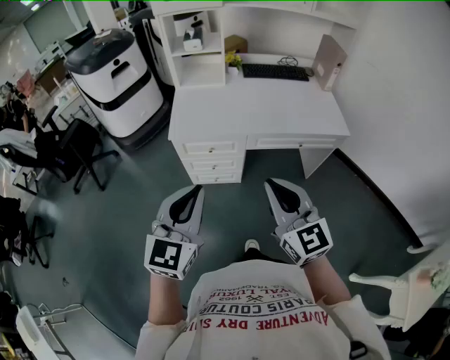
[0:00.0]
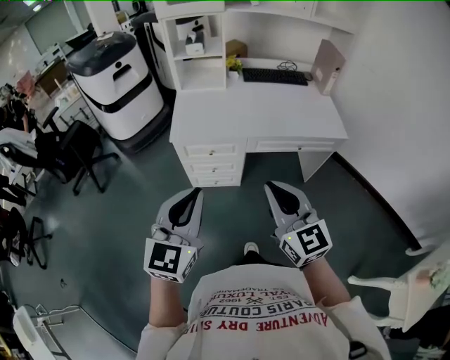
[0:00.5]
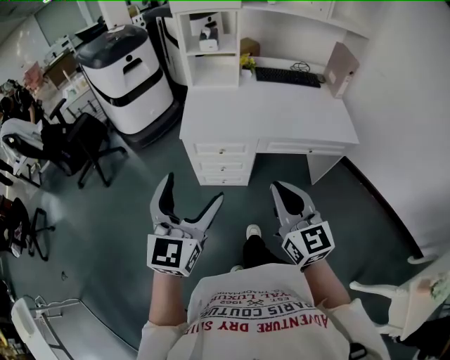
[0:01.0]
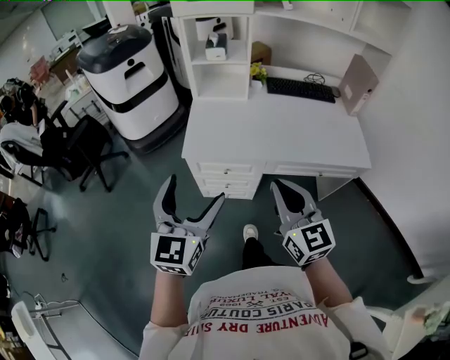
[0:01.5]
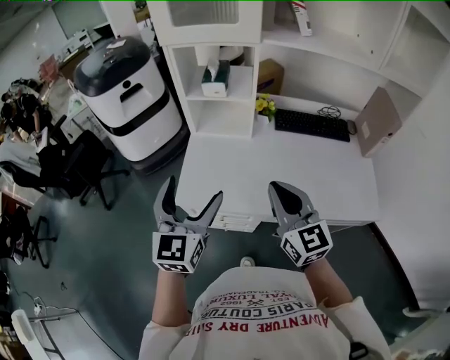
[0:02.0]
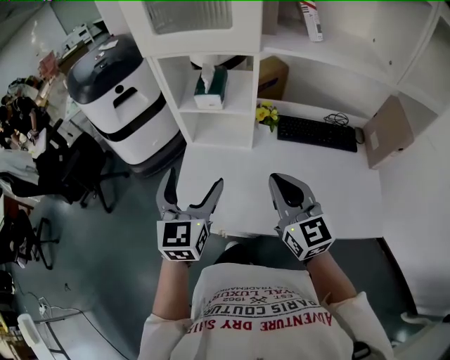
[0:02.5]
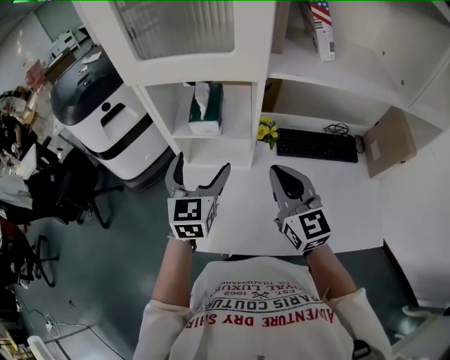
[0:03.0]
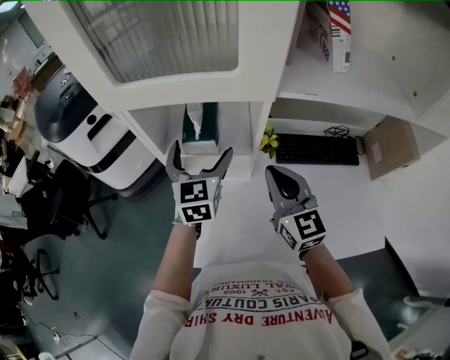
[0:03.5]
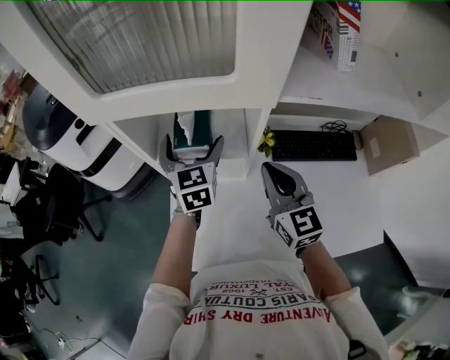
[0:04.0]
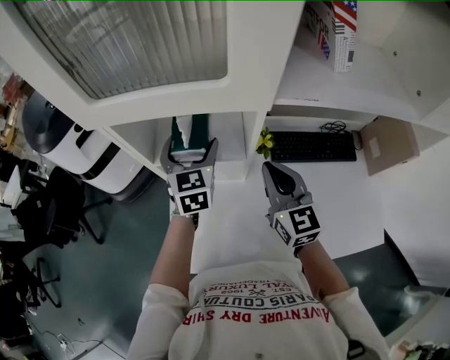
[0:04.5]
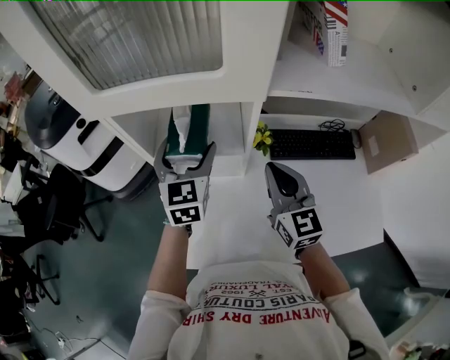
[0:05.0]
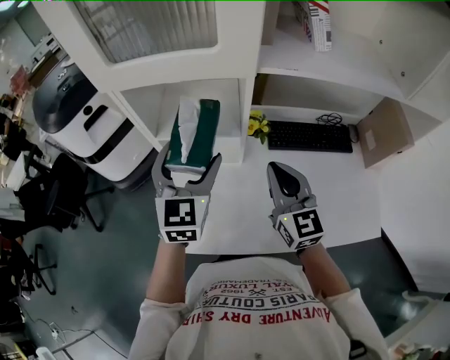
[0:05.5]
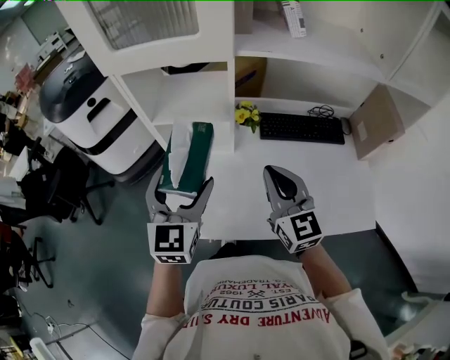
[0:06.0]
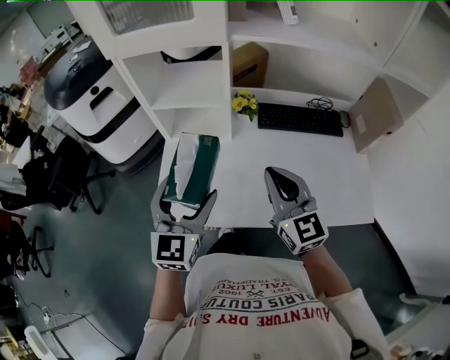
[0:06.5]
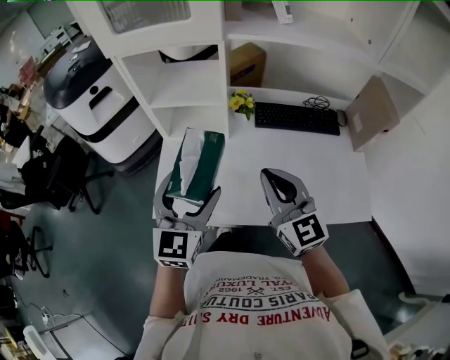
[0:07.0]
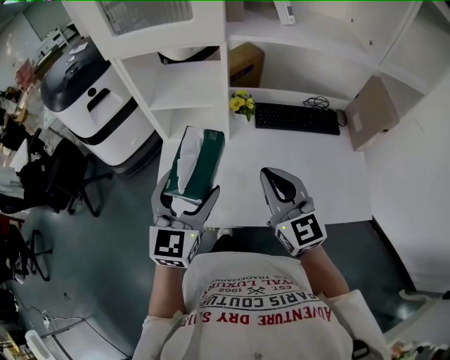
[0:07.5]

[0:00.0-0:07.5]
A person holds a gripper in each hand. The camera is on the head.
0:00.0 to 0:02.0: The two grippers go roughly 35 cm forward. The left gripper opens its fingers.
0:02.0 to 0:04.0: Both grippers move forward, approximately 40 cm.
0:04.0 to 0:05.5: The right gripper shifts approximately 10 cm backward. Meanwhile the left gripper goes some 15 cm backward and upward.
0:05.5 to 0:07.5: Both grippers move backward, about 15 cm.

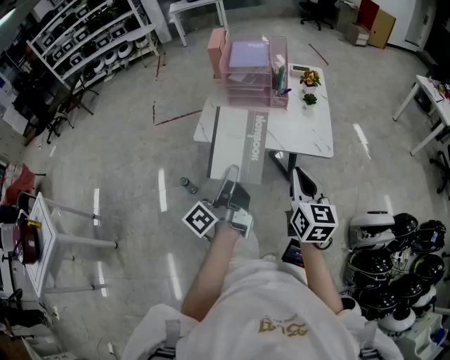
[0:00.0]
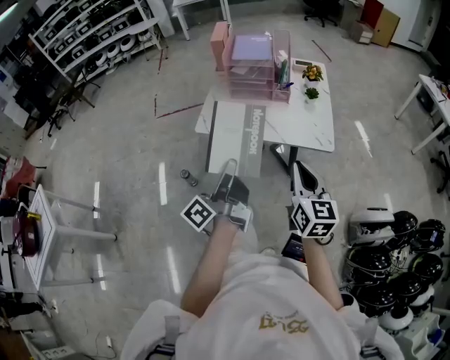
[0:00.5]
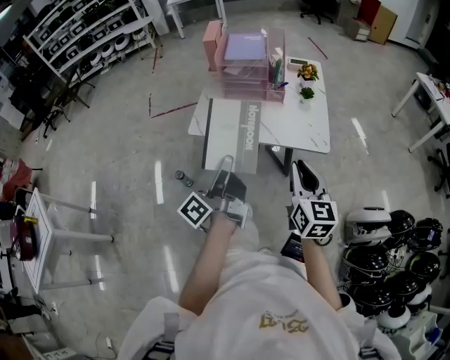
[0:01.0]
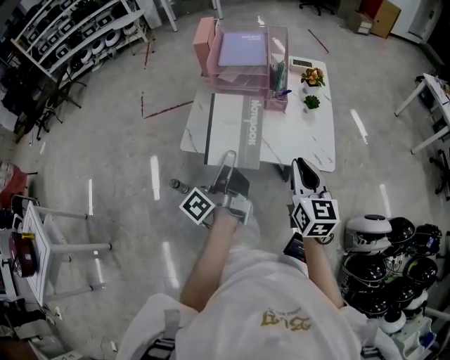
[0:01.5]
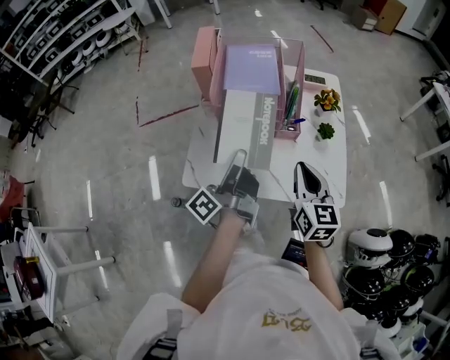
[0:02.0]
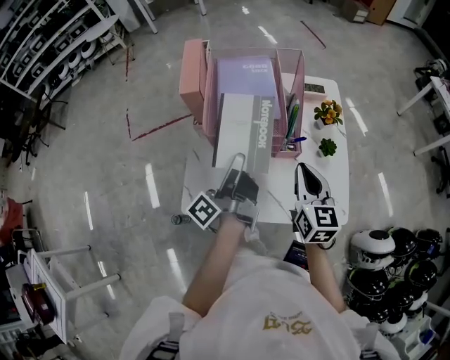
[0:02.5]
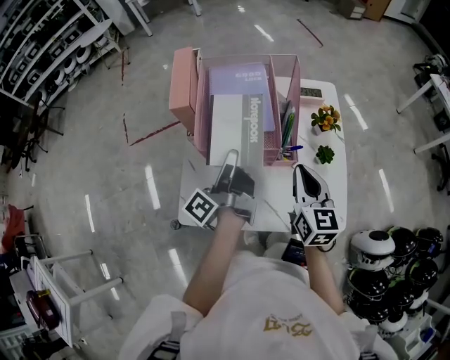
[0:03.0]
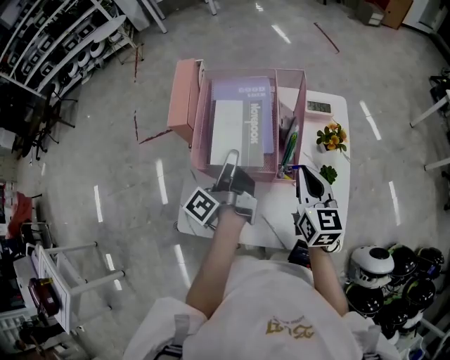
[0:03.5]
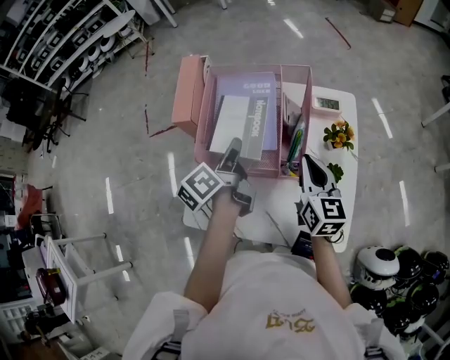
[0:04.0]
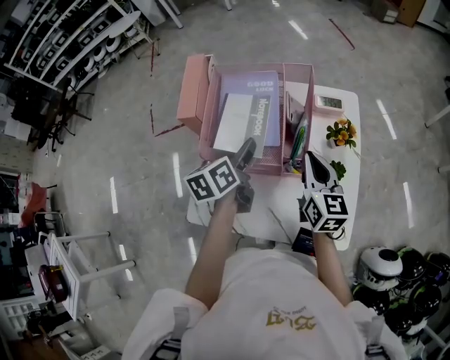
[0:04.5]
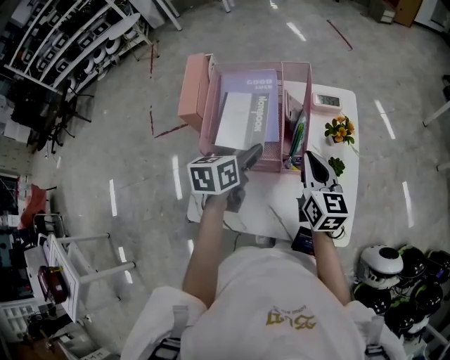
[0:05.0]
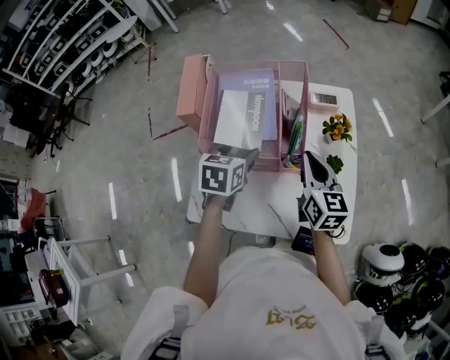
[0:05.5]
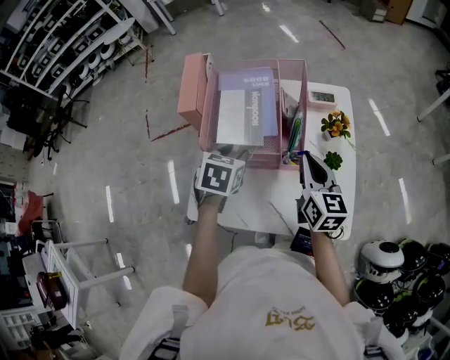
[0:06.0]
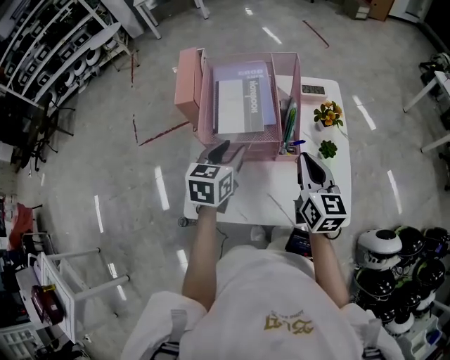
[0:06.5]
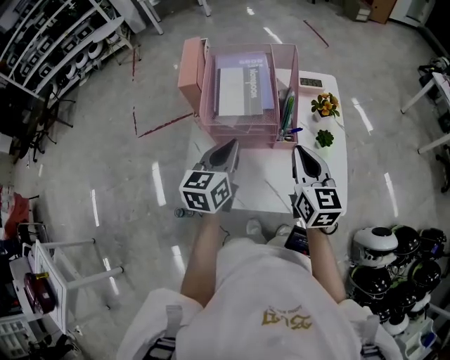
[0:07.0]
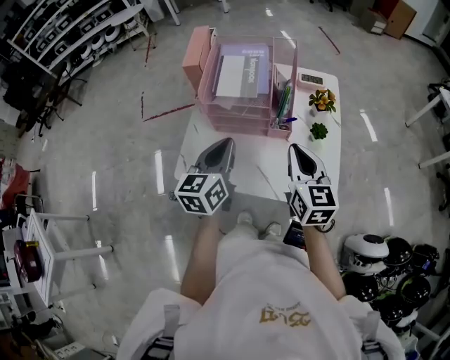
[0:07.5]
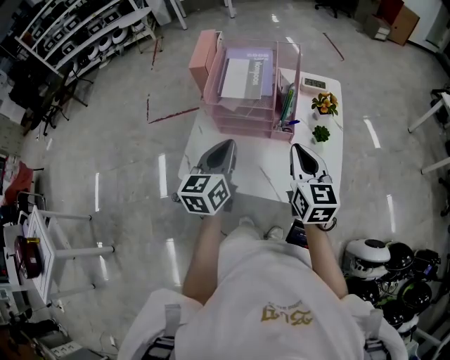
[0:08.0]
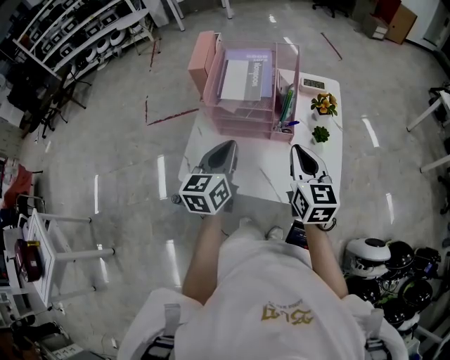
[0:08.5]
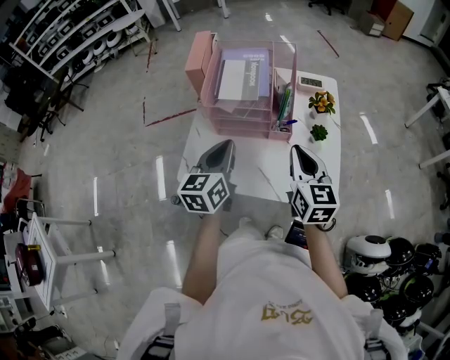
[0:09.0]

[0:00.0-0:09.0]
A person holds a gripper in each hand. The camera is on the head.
0:00.0 to 0:02.0: Both grippers move forward, about 35 cm.
0:02.0 to 0:04.5: Both grippers move forward, approximately 20 cm. The left gripper tilts its fingers roughly 40 degrees downward, and opens.
0:04.5 to 0:07.0: The two grippers go about 15 cm backward. The left gripper rotates roughly 30 degrees, and closes up.
0:07.0 to 0:09.0: Both grippers travel together backward, roughly 5 cm.

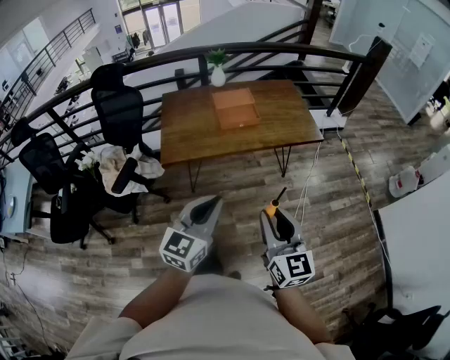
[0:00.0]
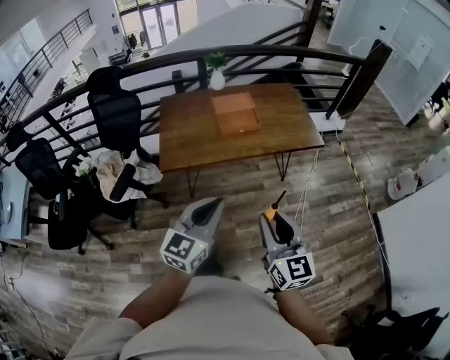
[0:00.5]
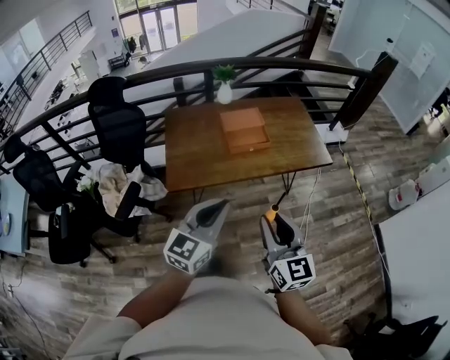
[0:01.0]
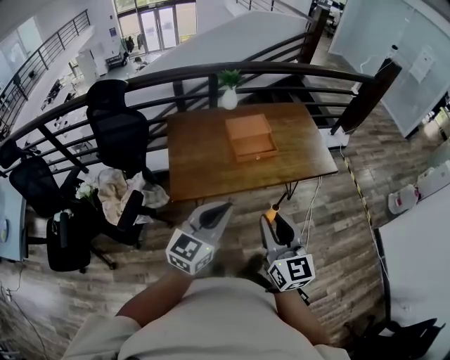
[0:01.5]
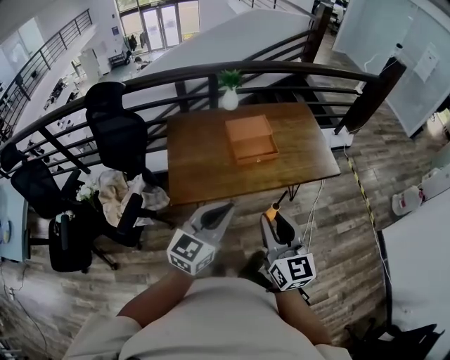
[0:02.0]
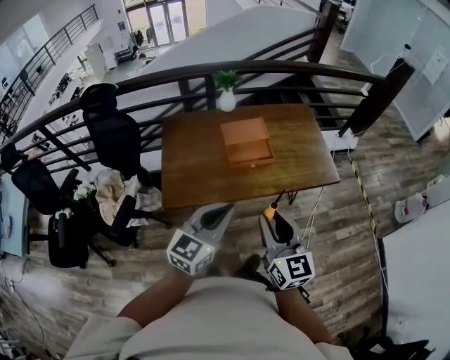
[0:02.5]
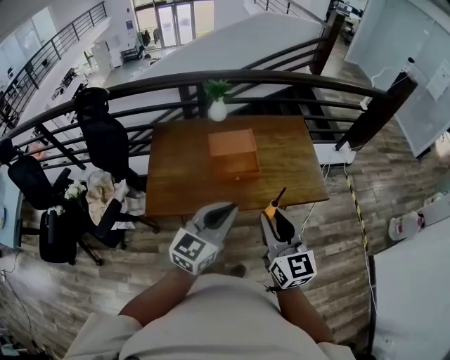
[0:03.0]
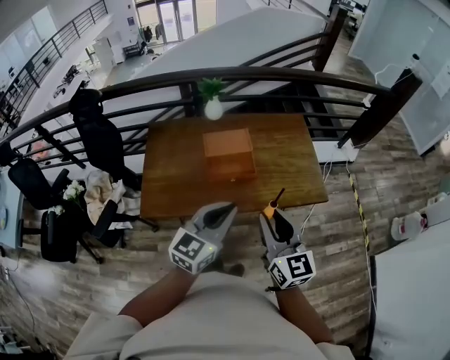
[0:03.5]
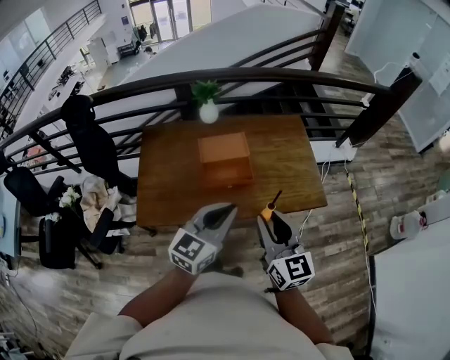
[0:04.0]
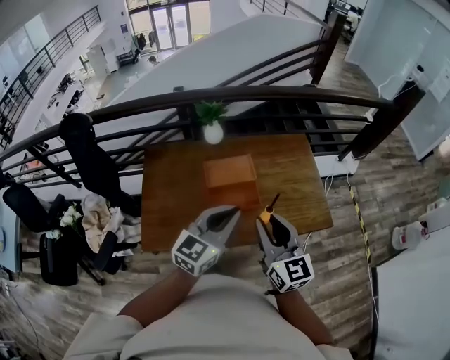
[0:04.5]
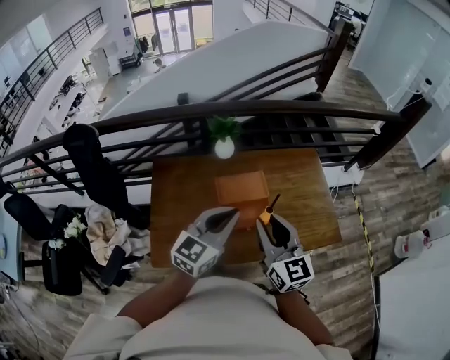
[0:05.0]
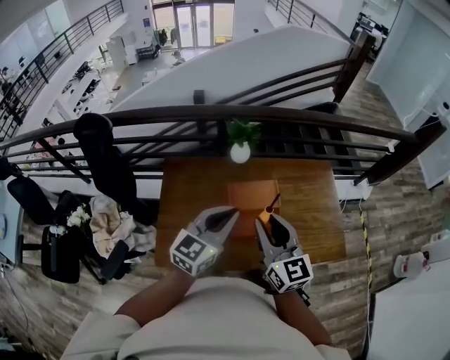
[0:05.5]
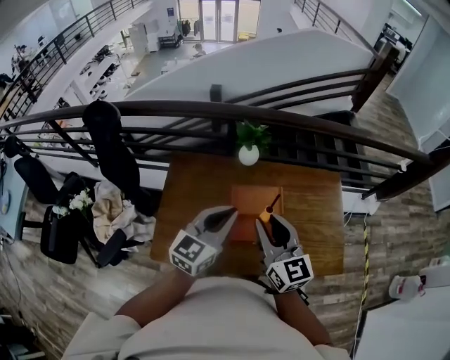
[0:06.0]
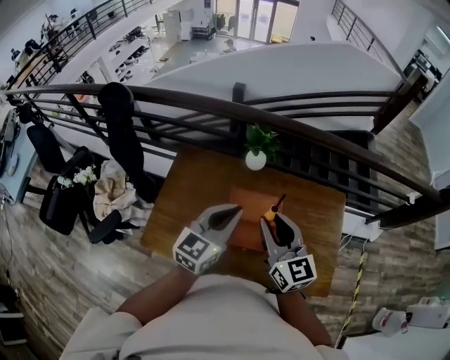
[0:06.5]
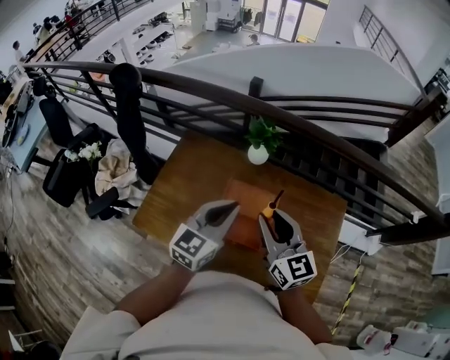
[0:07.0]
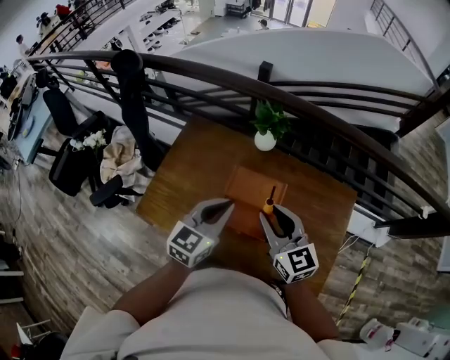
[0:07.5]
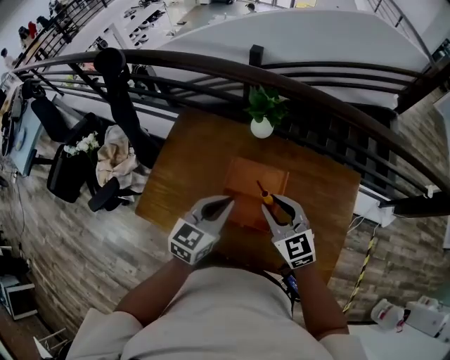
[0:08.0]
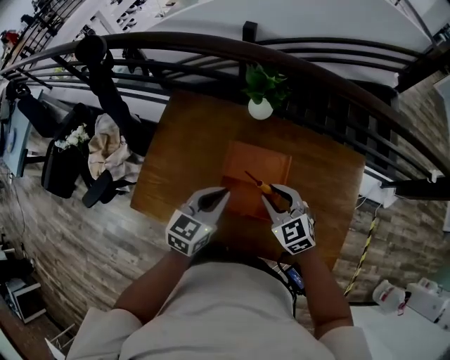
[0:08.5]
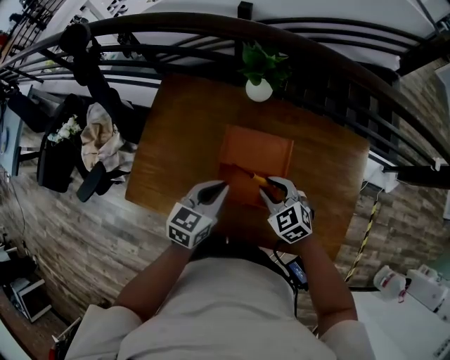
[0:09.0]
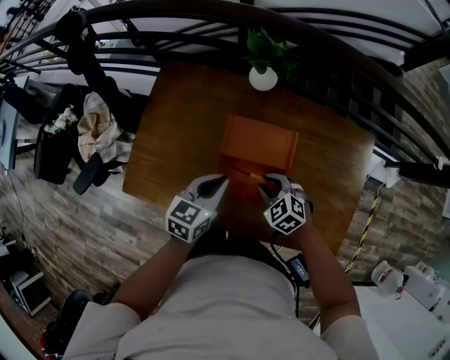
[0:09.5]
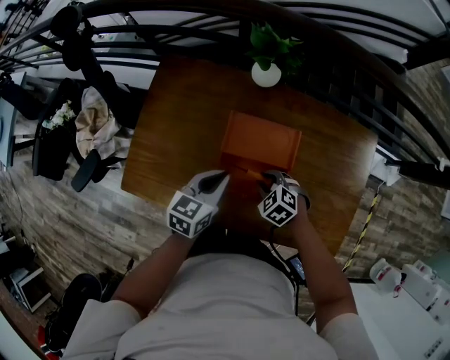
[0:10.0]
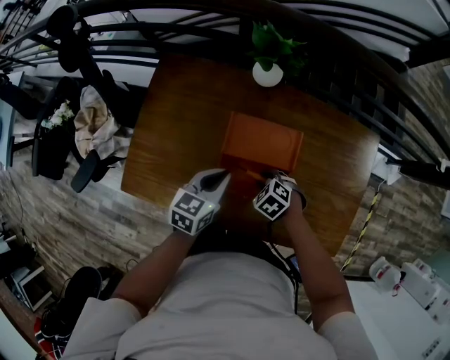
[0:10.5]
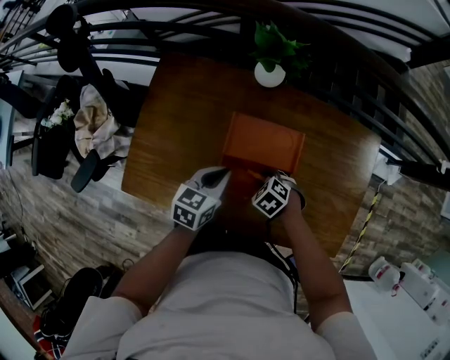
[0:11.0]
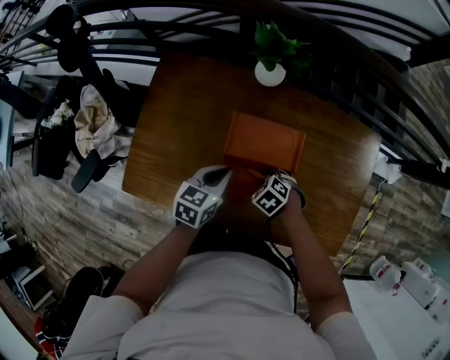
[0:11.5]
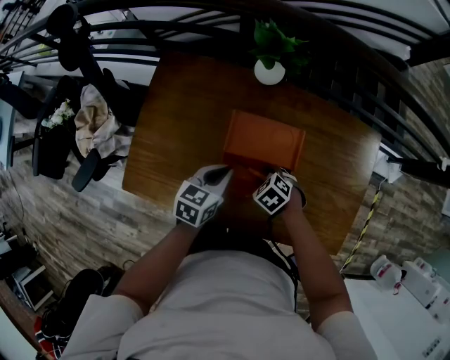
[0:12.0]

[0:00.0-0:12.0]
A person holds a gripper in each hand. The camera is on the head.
0:00.0 to 0:02.0: The two grippers go some 25 cm forward and to the left.
0:02.0 to 0:04.0: The grippers both shift forward and to the right by roughly 30 cm.
0:04.0 to 0:06.0: The grippers both shift forward and to the left by roughly 30 cm.
0:06.0 to 0:08.0: The left gripper is displaced downward and to the right by roughly 15 cm. Meanwhile the right gripper heads downward, to the right and forward, covering about 20 cm, and rotates roughly 30 degrees.
0:08.0 to 0:10.0: The left gripper travels downward by about 15 cm. The right gripper travels downward by some 25 cm, and tips its fingers downward by about 40 degrees.
0:10.0 to 0:12.0: The grippers move only a little.
